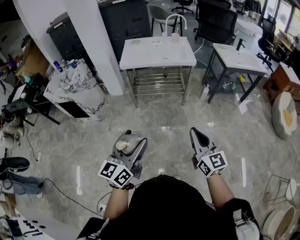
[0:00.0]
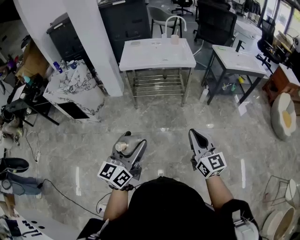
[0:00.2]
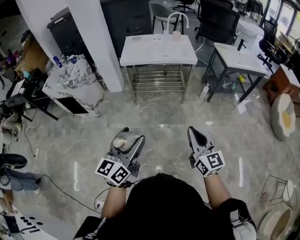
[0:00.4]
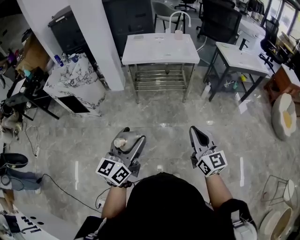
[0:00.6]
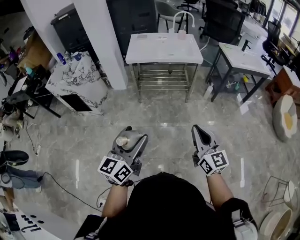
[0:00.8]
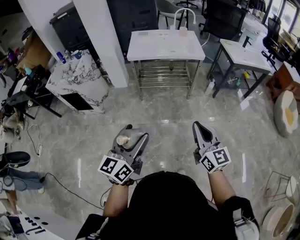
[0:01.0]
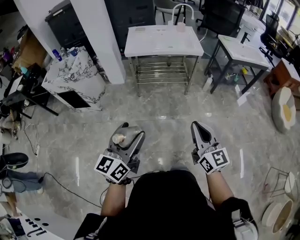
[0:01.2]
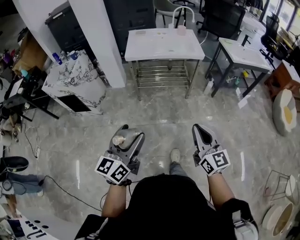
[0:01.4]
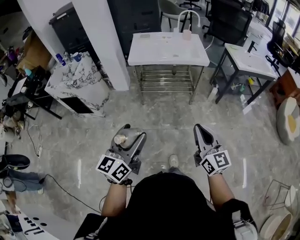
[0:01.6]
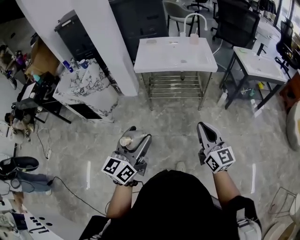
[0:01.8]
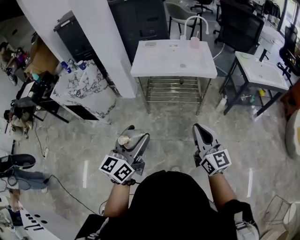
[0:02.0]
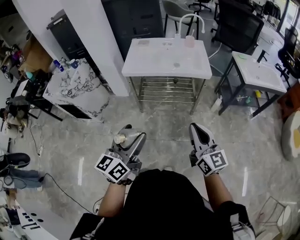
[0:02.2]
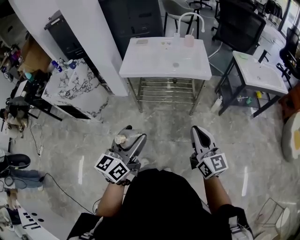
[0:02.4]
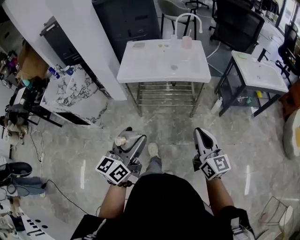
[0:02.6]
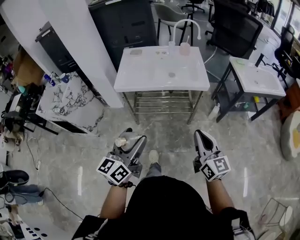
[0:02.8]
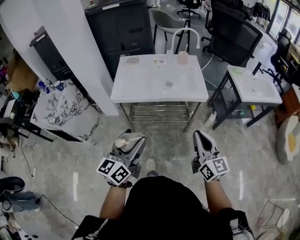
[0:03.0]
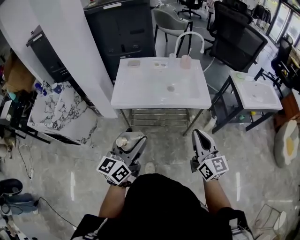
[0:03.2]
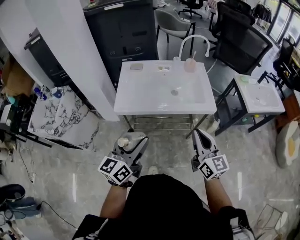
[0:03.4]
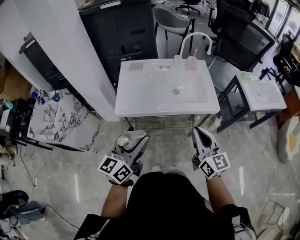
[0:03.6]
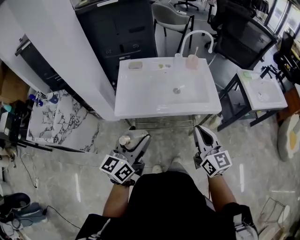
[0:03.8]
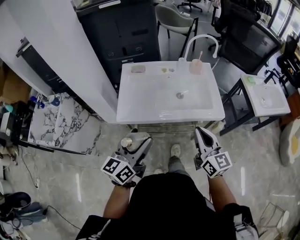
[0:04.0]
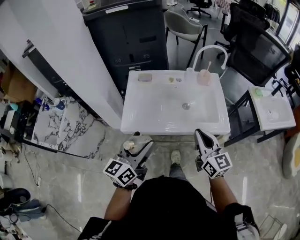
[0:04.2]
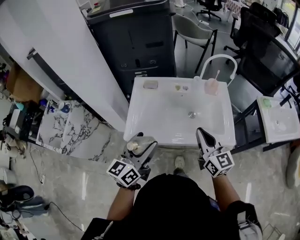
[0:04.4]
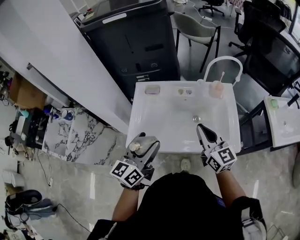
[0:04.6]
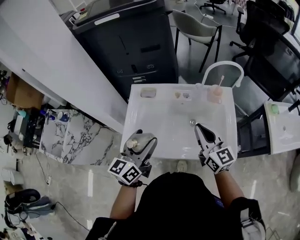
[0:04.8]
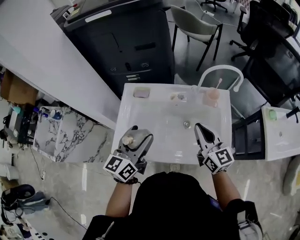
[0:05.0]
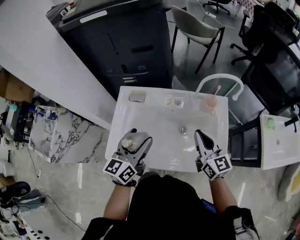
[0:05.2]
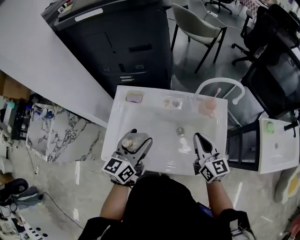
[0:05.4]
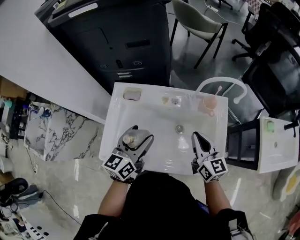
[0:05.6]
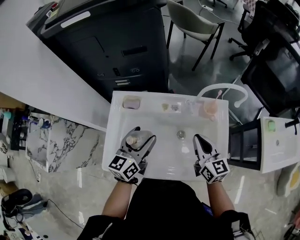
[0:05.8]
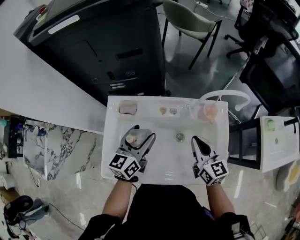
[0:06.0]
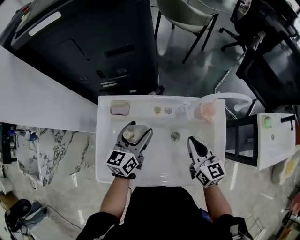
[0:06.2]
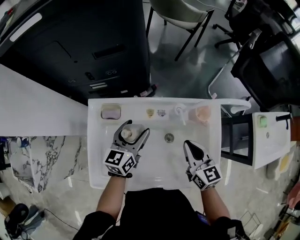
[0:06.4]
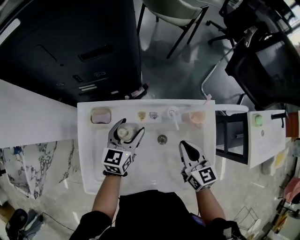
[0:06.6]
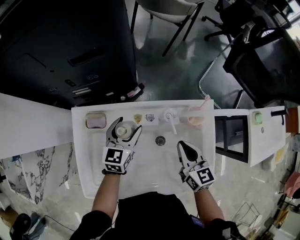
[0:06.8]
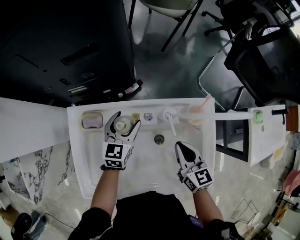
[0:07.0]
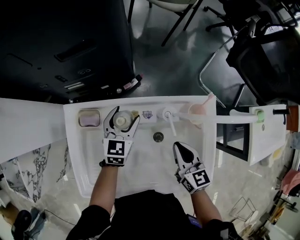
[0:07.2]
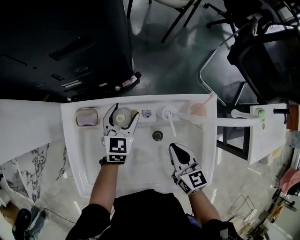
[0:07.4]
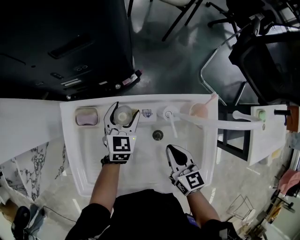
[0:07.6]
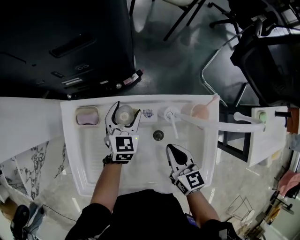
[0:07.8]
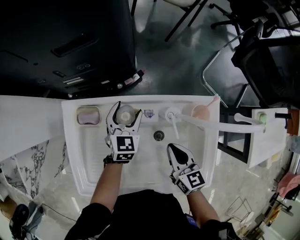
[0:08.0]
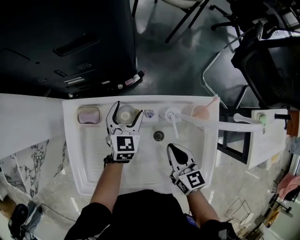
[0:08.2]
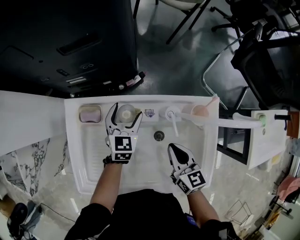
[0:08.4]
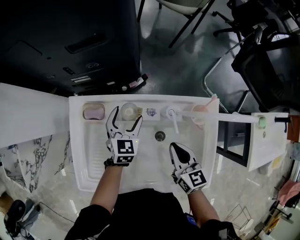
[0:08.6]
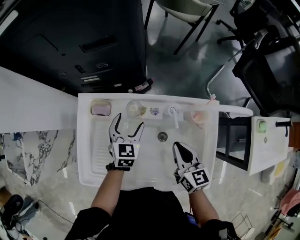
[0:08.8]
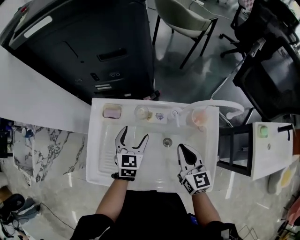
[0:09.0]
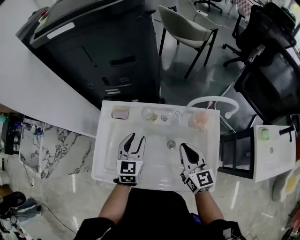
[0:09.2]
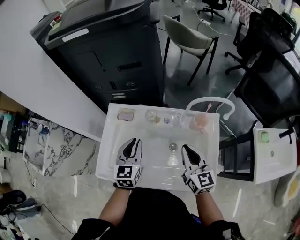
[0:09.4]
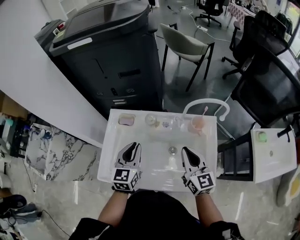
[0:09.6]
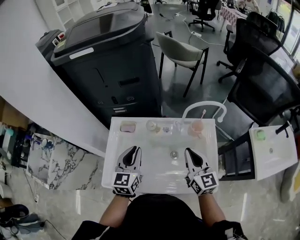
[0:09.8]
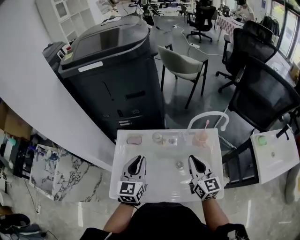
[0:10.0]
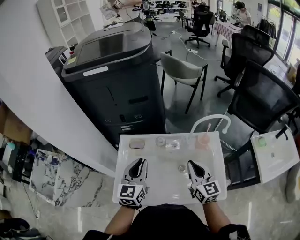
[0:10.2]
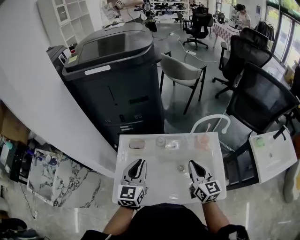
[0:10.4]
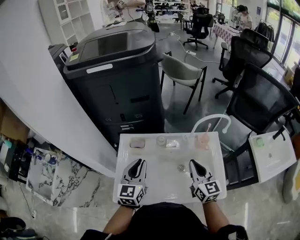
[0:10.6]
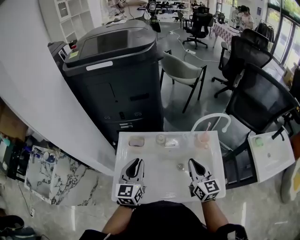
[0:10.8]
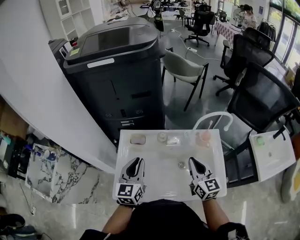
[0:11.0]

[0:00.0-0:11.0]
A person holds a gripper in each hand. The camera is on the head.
0:00.0 to 0:01.6: The left gripper goes roughly 10 cm to the left and forward; the right gripper goes some 10 cm forward and to the left.
0:01.6 to 0:03.2: The two grippers go some 35 cm forward.
0:03.2 to 0:04.8: Both grippers travel together forward, roughly 35 cm.
0:04.8 to 0:06.2: The left gripper heads forward and downward, covering approximately 25 cm; the right gripper is displaced forward, downward and to the right by some 15 cm.
0:06.2 to 0:07.8: The left gripper moves downward and forward, roughly 15 cm, and rotates about 40 degrees. The right gripper is displaced downward by some 10 cm.
0:07.8 to 0:09.4: The left gripper goes about 25 cm backward and upward, changes its angle by approximately 20 degrees, and closes its fingers. The right gripper heads upward, covering roughly 15 cm, and rotates roughly 20 degrees.
0:09.4 to 0:11.0: The left gripper goes about 10 cm to the left and upward.

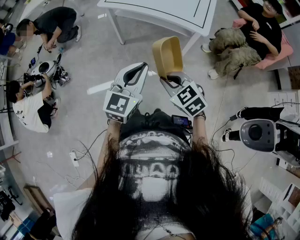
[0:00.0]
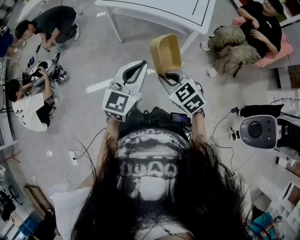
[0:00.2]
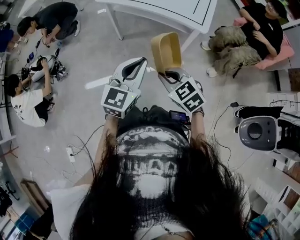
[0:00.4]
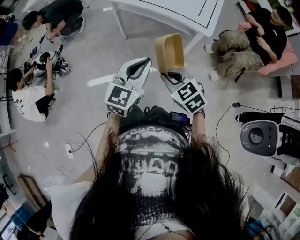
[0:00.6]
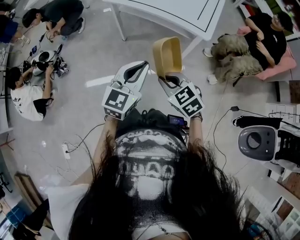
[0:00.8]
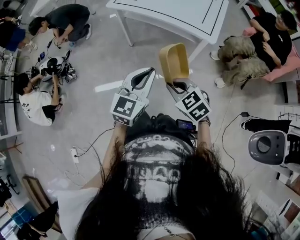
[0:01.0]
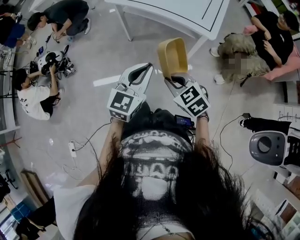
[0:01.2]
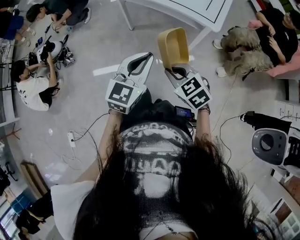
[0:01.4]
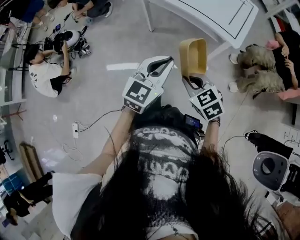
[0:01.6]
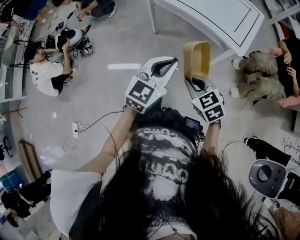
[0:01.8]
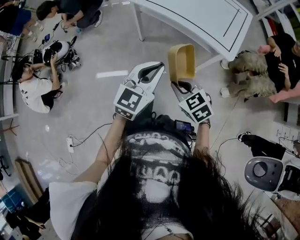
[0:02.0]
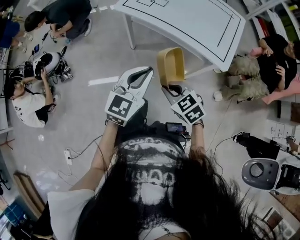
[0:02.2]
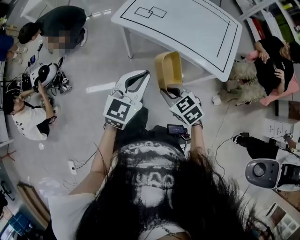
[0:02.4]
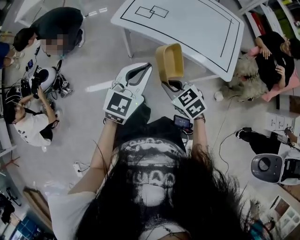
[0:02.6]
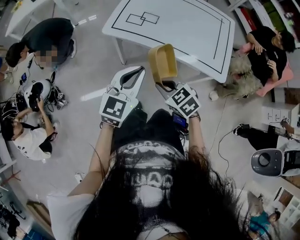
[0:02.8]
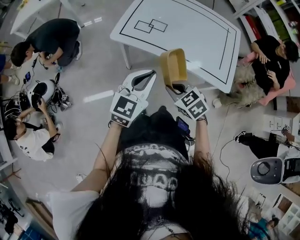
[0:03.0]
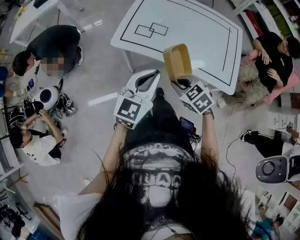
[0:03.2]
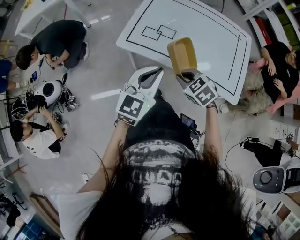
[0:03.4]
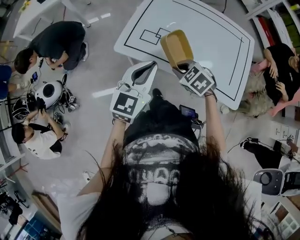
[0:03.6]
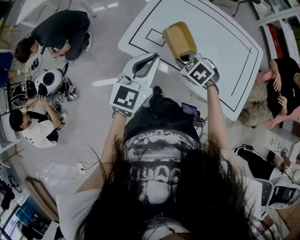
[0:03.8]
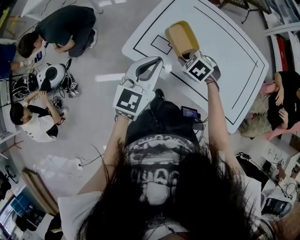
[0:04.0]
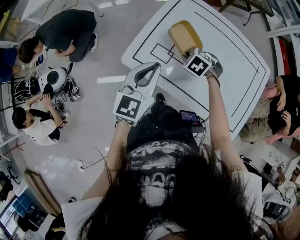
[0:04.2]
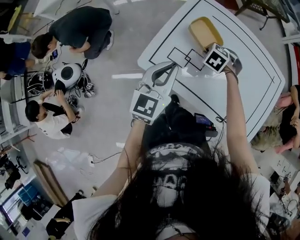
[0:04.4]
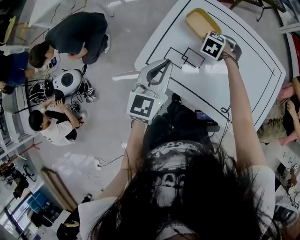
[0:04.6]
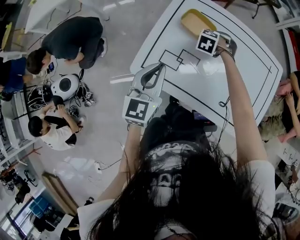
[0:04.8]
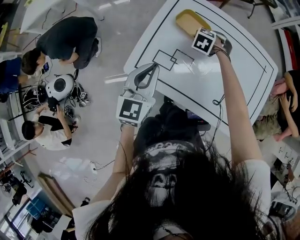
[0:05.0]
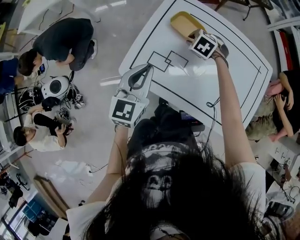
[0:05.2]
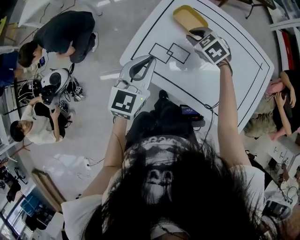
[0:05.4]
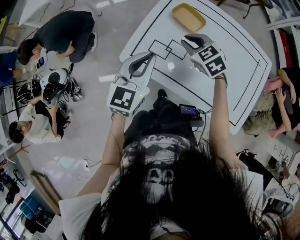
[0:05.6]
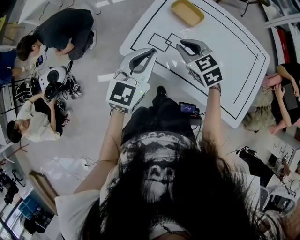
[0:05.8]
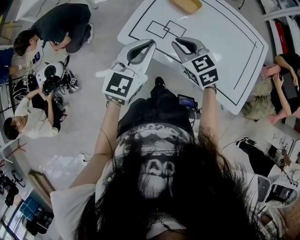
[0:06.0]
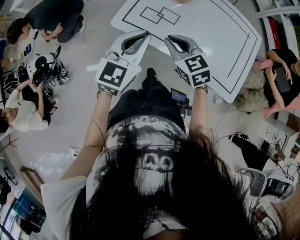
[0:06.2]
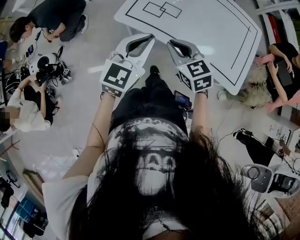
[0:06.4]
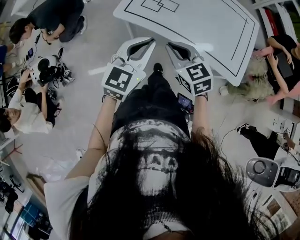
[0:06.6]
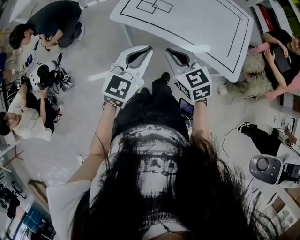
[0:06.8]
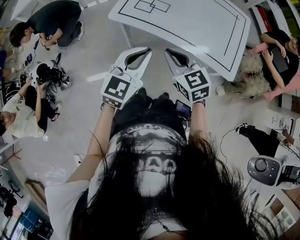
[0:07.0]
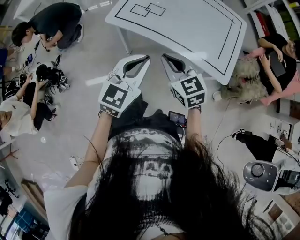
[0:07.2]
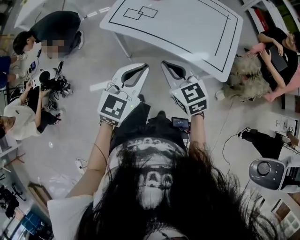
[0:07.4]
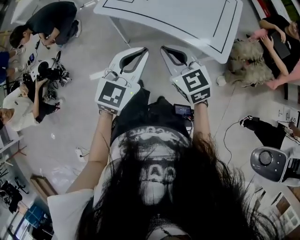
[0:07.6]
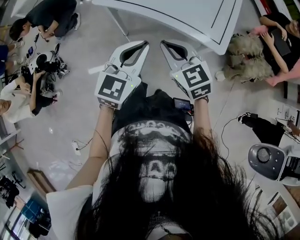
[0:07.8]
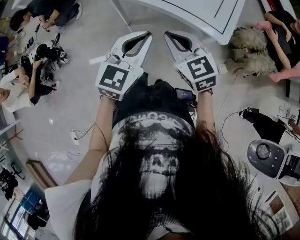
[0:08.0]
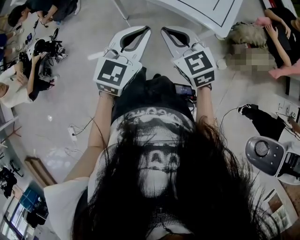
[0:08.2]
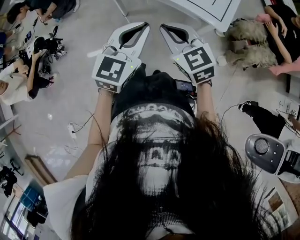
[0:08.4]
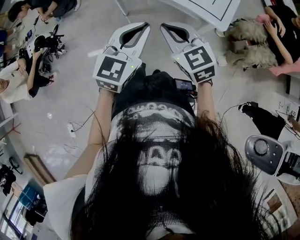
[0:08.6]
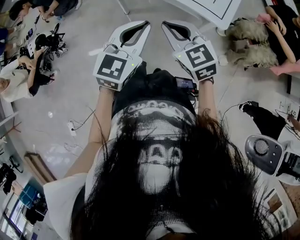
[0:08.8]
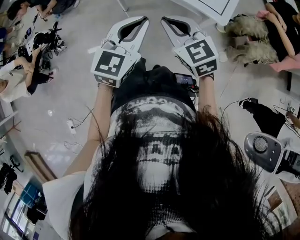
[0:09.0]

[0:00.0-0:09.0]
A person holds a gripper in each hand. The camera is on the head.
0:00.0 to 0:01.6: The left gripper ends up about 5 cm from where it was. Meanwhile the right gripper shifts by some 5 cm.
0:01.6 to 0:03.0: Both grippers are carried forward, approximately 40 cm.
0:03.0 to 0:04.4: The grippers both shift forward by approximately 40 cm. The right gripper swivels some 40 degrees.
0:04.4 to 0:06.0: The left gripper ends up approximately 10 cm from where it was, while the right gripper shifts by about 25 cm, and tilts its fingers roughly 40 degrees upward.
0:06.0 to 0:07.6: The right gripper travels backward by about 35 cm, while the left gripper moves backward and to the right, some 35 cm.
0:07.6 to 0:09.0: Both grippers travel together backward, approximately 10 cm.

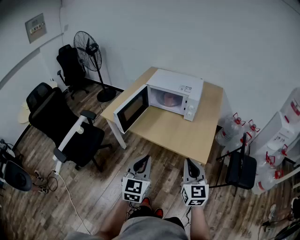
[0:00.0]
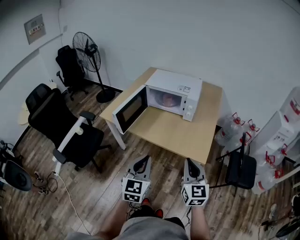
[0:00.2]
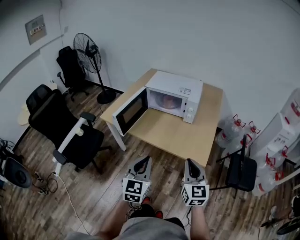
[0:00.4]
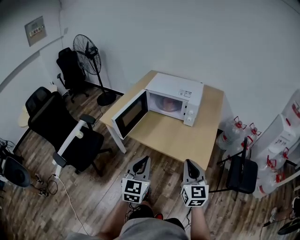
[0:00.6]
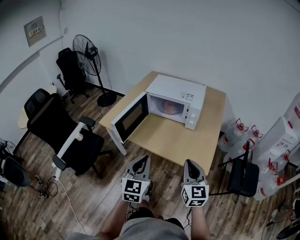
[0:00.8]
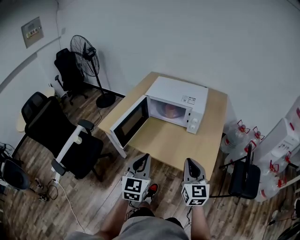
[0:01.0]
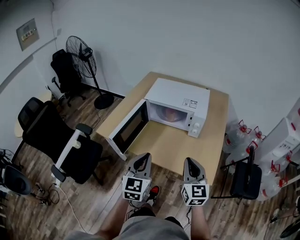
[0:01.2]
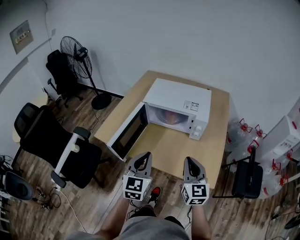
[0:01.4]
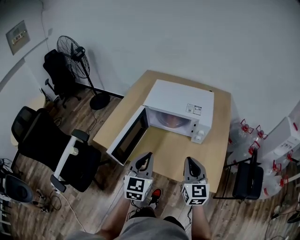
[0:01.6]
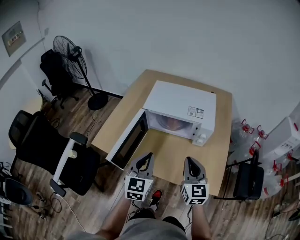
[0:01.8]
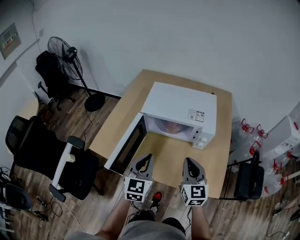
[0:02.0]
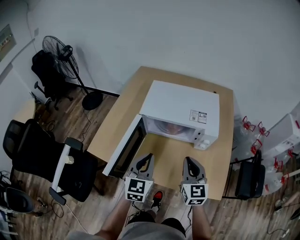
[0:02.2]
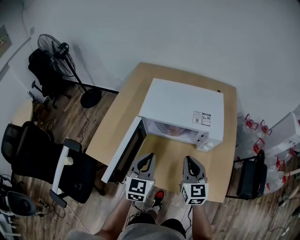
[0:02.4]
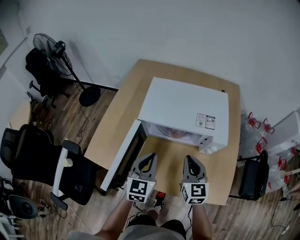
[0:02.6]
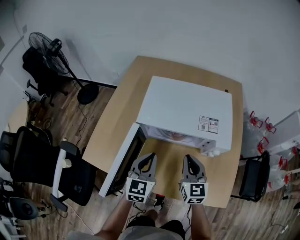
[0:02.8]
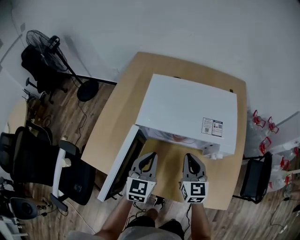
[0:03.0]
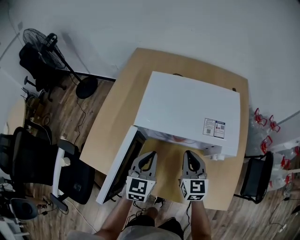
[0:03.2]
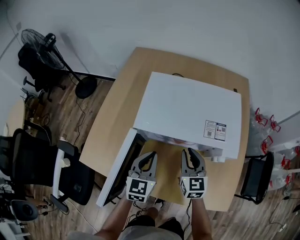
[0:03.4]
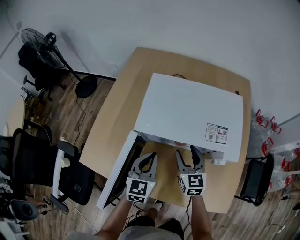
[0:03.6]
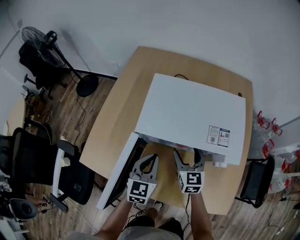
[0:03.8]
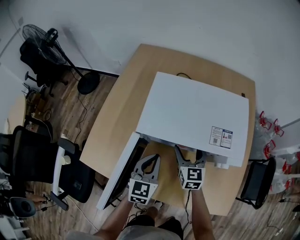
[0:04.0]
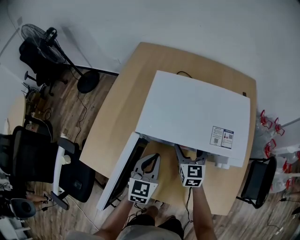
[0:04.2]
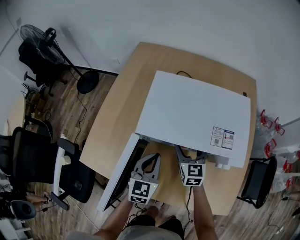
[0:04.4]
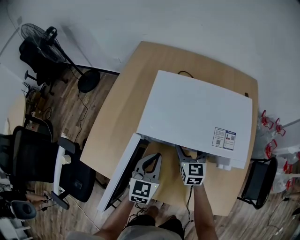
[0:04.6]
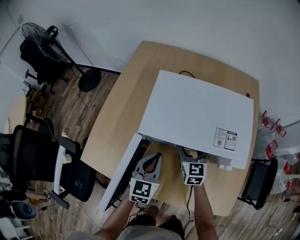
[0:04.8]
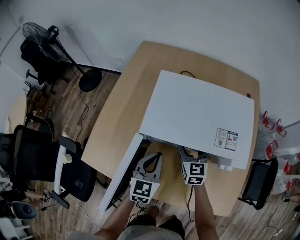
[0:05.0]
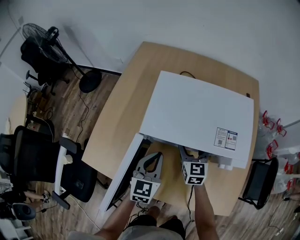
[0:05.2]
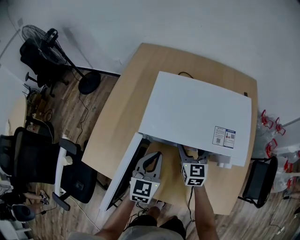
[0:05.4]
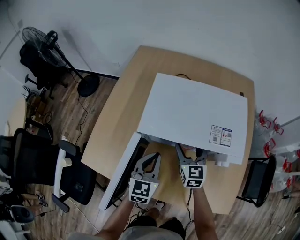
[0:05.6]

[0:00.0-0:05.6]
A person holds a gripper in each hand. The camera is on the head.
0:00.0 to 0:01.4: The two grippers go approximately 20 cm forward.
0:01.4 to 0:02.8: Both grippers move forward and downward, some 25 cm.
0:02.8 to 0:04.2: The left gripper goes approximately 10 cm downward and forward; the right gripper shifts about 15 cm forward and downward, and opens its fingers.
0:04.2 to 0:05.6: The grippers make only small movements.